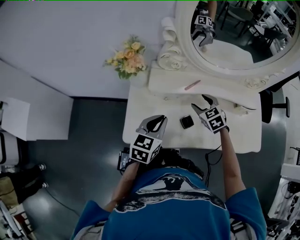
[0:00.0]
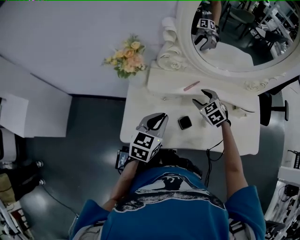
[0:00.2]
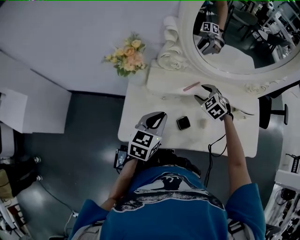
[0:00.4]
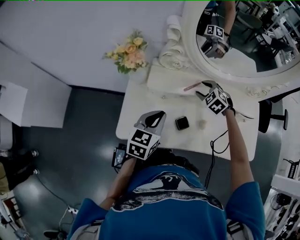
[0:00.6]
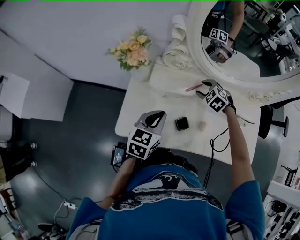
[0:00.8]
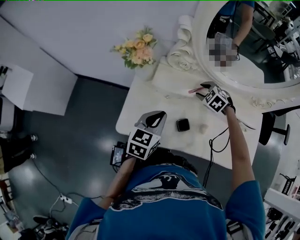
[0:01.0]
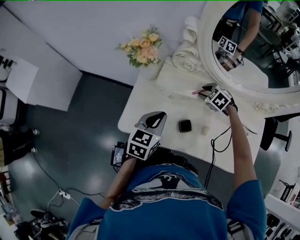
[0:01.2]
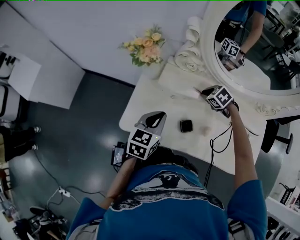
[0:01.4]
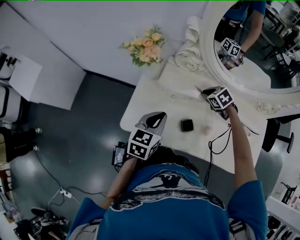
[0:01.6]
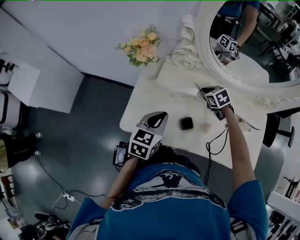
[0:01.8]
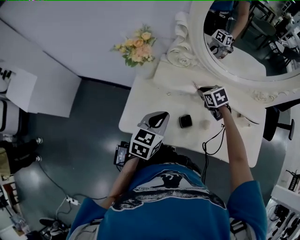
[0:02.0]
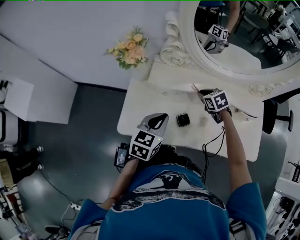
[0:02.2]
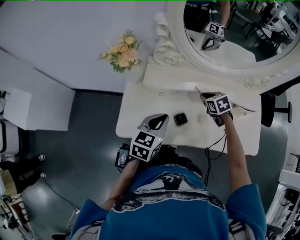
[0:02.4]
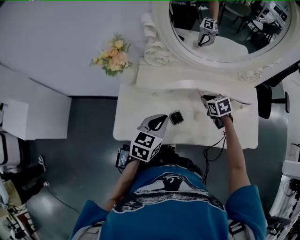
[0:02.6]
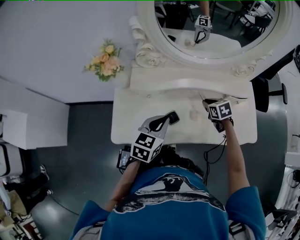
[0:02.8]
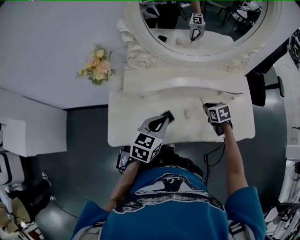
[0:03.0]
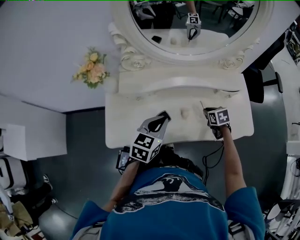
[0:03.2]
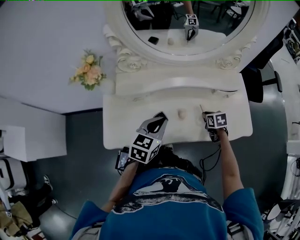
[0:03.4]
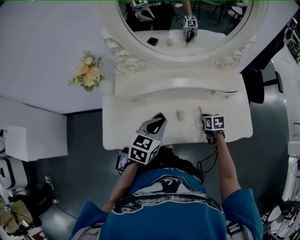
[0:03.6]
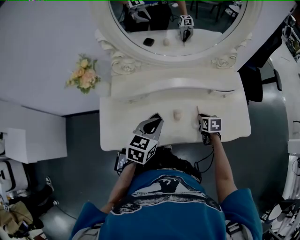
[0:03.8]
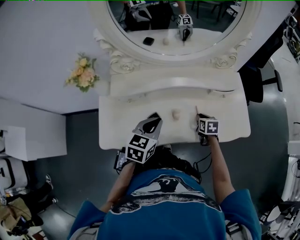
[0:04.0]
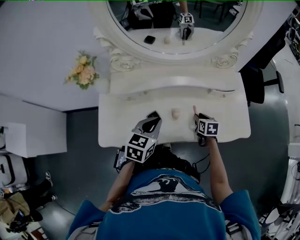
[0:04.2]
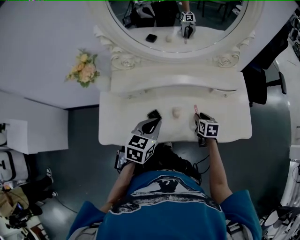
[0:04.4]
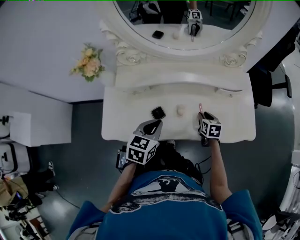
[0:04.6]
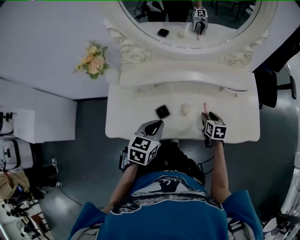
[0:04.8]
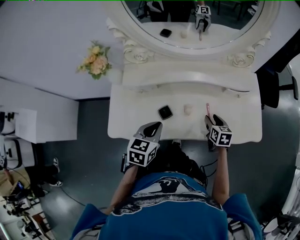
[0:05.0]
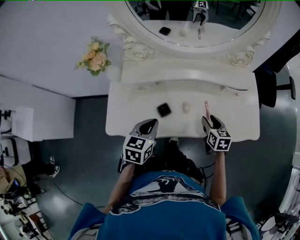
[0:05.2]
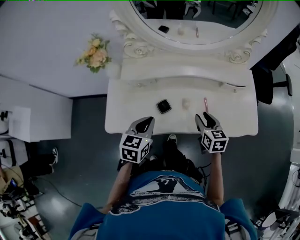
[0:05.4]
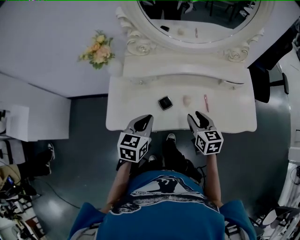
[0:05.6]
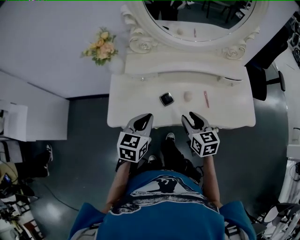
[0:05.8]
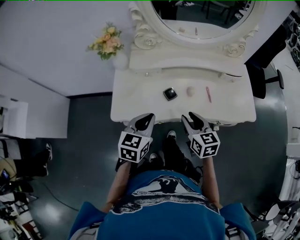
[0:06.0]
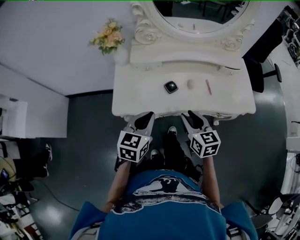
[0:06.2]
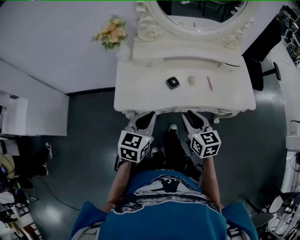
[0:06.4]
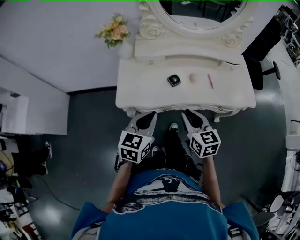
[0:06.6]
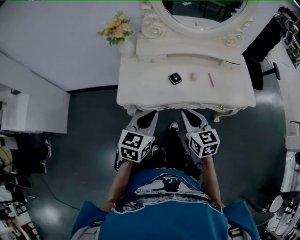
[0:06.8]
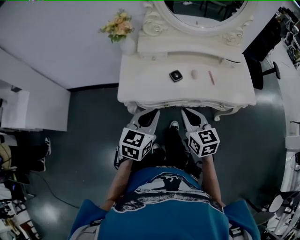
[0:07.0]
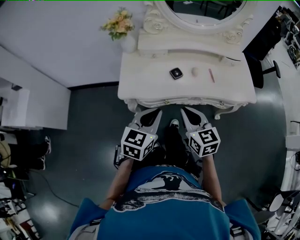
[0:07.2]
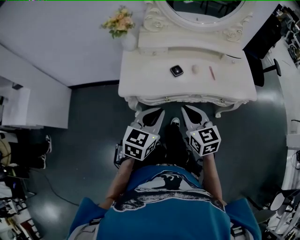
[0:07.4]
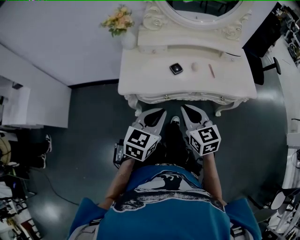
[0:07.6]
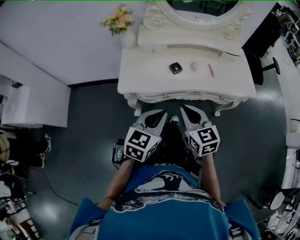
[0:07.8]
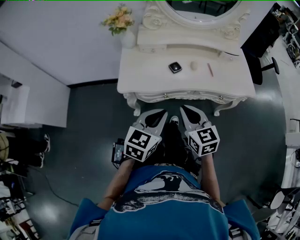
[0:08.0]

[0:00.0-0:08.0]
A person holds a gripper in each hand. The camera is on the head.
0:00.0 to 0:01.6: The right gripper changes place by approximately 10 cm, changes its angle by approximately 30 degrees, and closes.
0:01.6 to 0:03.2: The left gripper changes place by about 15 cm, and turns by some 30 degrees. The right gripper ends up about 30 cm from where it was, and twists approximately 50 degrees clockwise, seen from behind.
0:03.2 to 0:04.8: The left gripper ends up about 5 cm from where it was. Meanwhile the right gripper opens.
0:04.8 to 0:06.4: The left gripper travels backward and to the left by approximately 20 cm, while the right gripper is displaced backward, to the left and upward by roughly 35 cm, and turns by some 20 degrees.
0:06.4 to 0:08.0: Both grippers move backward, about 10 cm.

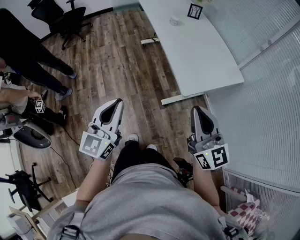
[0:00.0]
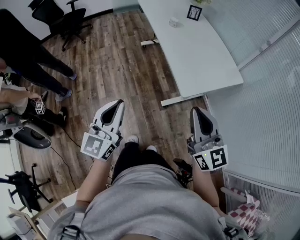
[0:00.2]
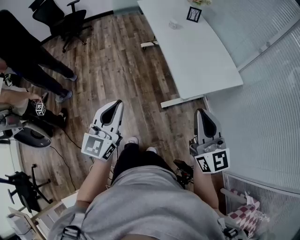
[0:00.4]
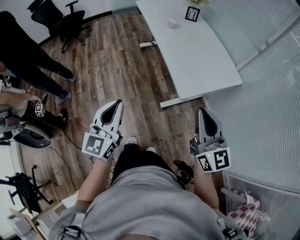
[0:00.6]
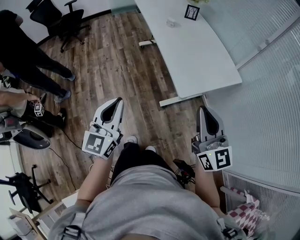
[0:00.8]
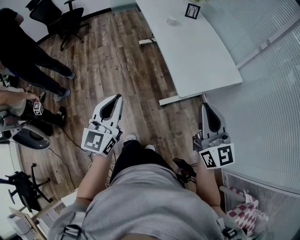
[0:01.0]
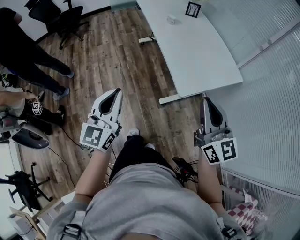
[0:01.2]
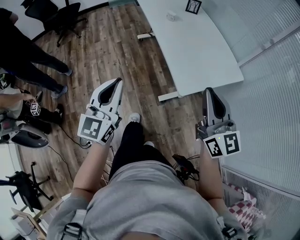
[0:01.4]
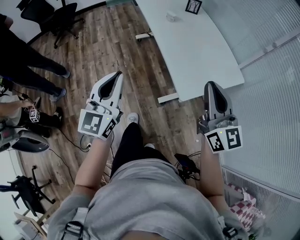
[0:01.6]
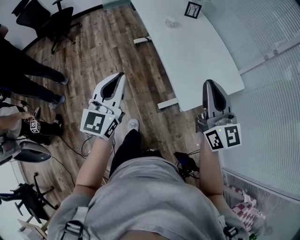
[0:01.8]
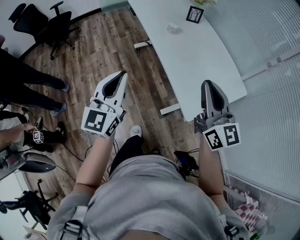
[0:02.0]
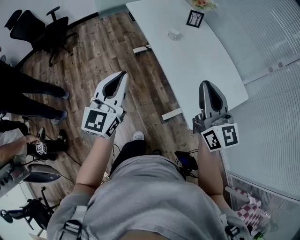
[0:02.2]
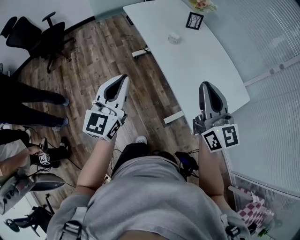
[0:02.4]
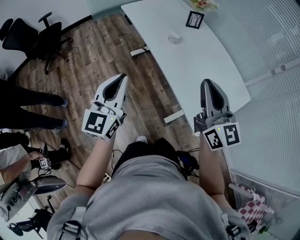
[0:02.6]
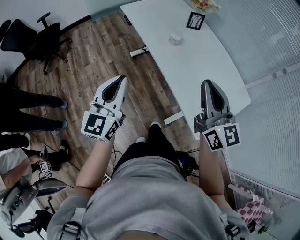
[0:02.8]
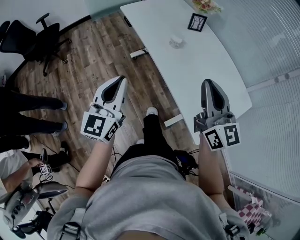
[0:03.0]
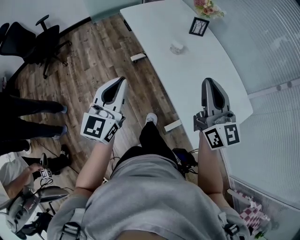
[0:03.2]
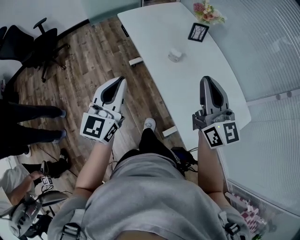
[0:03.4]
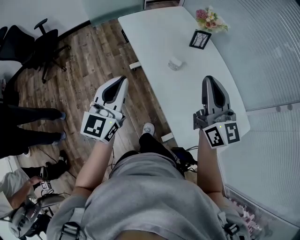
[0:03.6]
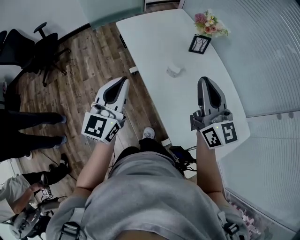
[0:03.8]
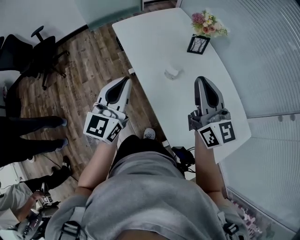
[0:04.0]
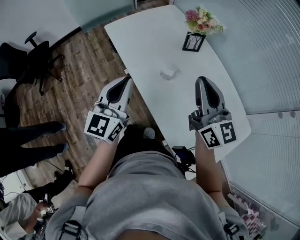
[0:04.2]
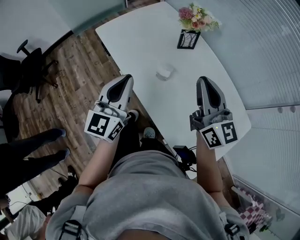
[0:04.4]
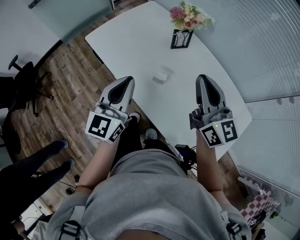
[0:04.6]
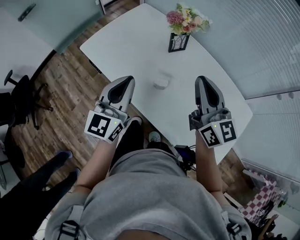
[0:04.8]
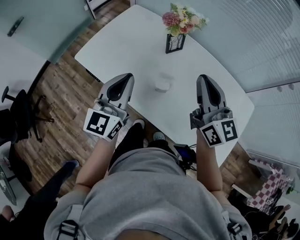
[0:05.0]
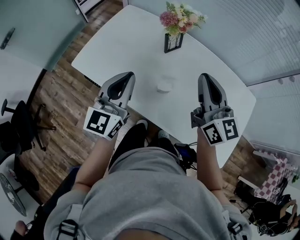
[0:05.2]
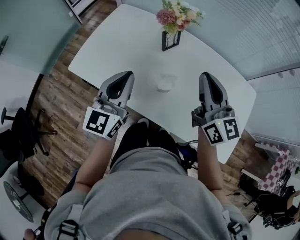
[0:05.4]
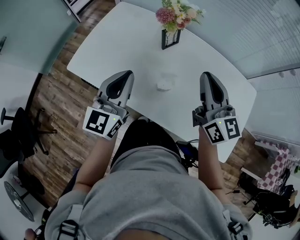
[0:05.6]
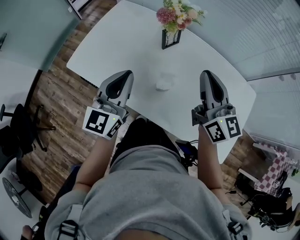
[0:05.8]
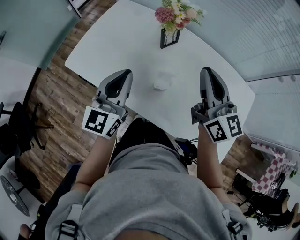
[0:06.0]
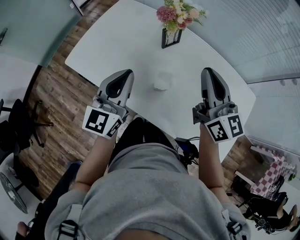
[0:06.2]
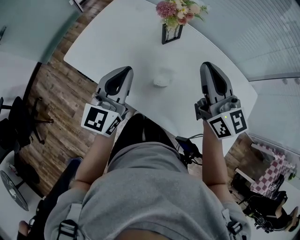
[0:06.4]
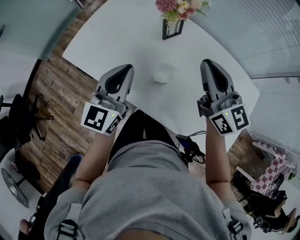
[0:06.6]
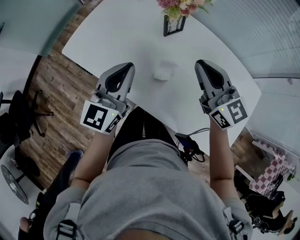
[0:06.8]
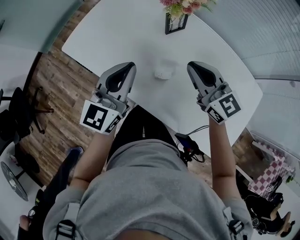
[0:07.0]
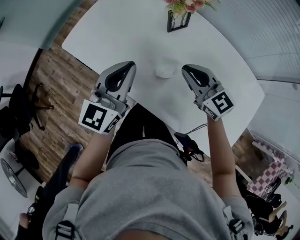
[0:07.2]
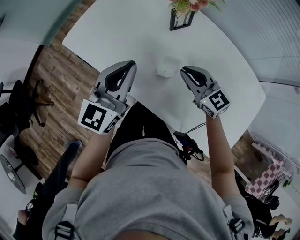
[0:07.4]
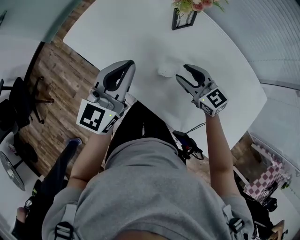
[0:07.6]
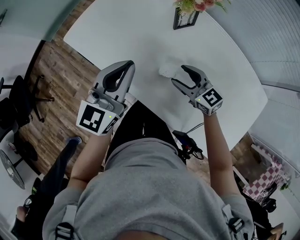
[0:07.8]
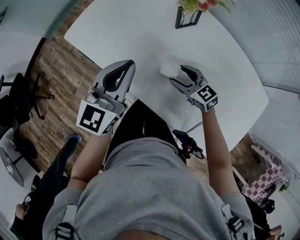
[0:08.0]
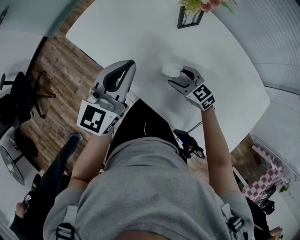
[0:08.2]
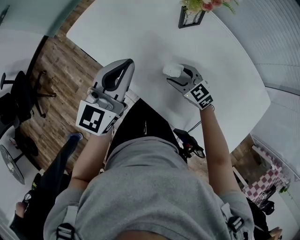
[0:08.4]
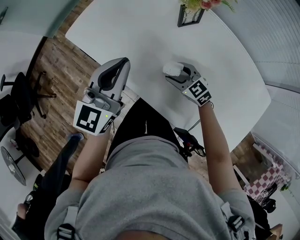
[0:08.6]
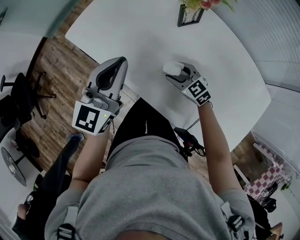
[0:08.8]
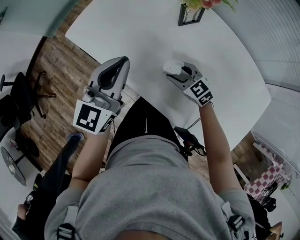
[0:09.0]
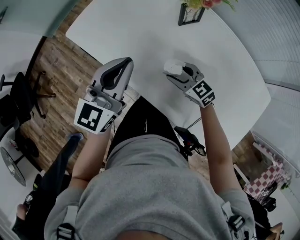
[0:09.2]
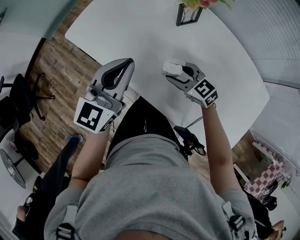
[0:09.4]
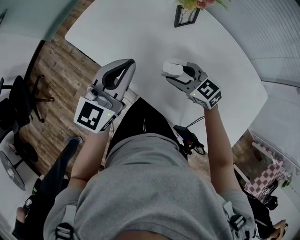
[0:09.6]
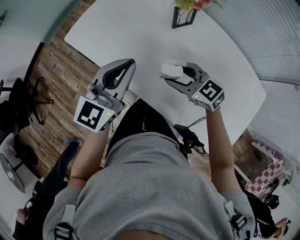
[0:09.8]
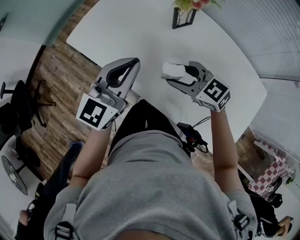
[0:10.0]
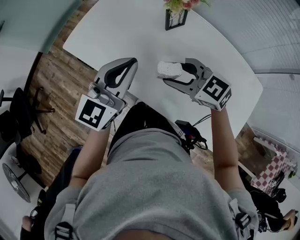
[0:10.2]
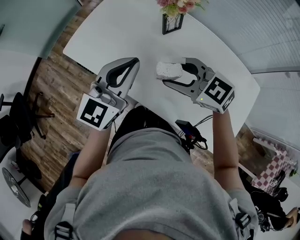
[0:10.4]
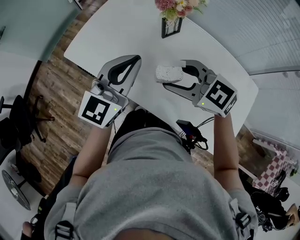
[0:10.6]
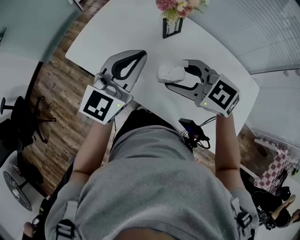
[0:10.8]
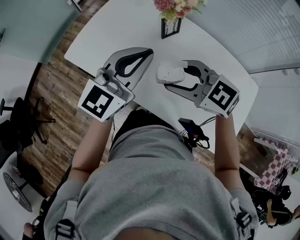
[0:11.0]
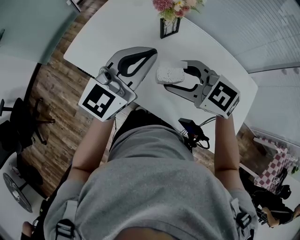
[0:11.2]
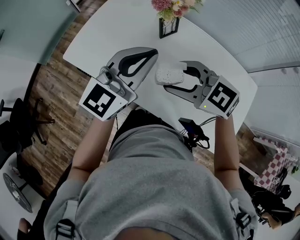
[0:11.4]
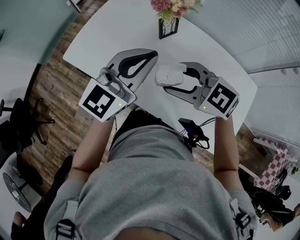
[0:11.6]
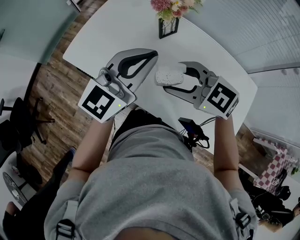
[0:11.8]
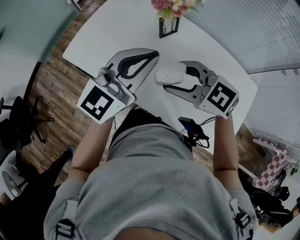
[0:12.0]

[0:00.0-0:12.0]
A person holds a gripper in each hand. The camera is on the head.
0:00.0 to 0:01.6: The two grippers go about 15 cm forward.
0:01.6 to 0:03.0: The left gripper is displaced forward by some 30 cm, while the right gripper shifts about 30 cm forward and to the left.
0:03.0 to 0:04.4: Both grippers travel together forward, roughly 25 cm.
0:04.4 to 0:06.0: The right gripper ends up approximately 10 cm from where it was, and turns by about 20 degrees, while the left gripper moves roughly 20 cm, and changes its angle by some 30 degrees.
0:06.0 to 0:07.6: The right gripper travels downward by approximately 25 cm, rotates some 40 degrees, and opens its fingers.
0:07.6 to 0:09.0: The right gripper is displaced downward by some 10 cm.
0:09.0 to 0:10.4: The left gripper is displaced upward by approximately 5 cm. The right gripper heads upward, covering roughly 20 cm.
0:10.4 to 0:12.0: The left gripper travels upward by about 5 cm.

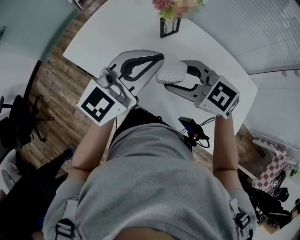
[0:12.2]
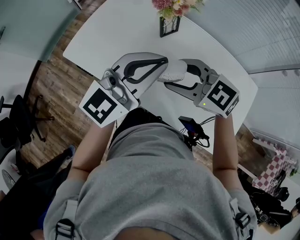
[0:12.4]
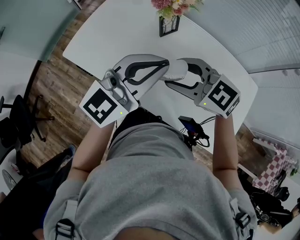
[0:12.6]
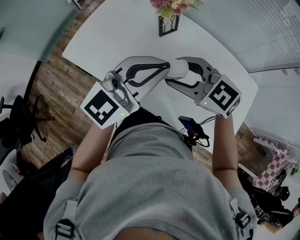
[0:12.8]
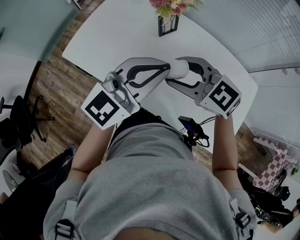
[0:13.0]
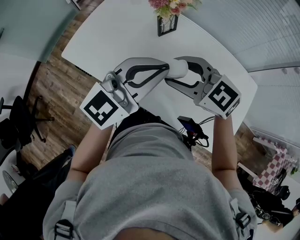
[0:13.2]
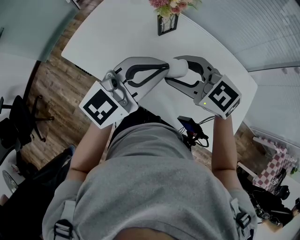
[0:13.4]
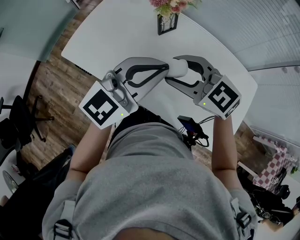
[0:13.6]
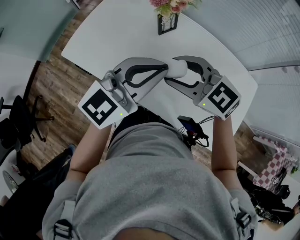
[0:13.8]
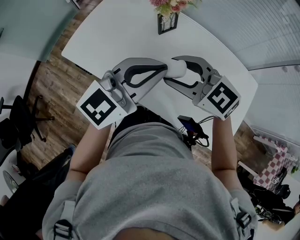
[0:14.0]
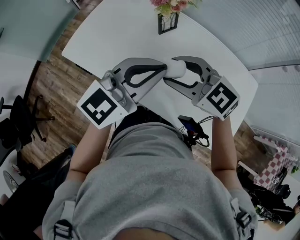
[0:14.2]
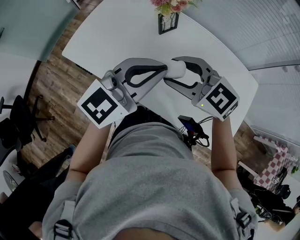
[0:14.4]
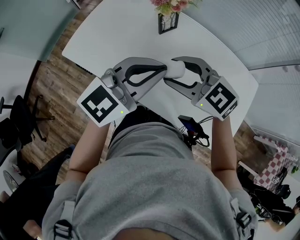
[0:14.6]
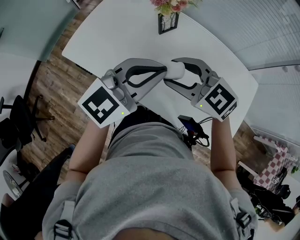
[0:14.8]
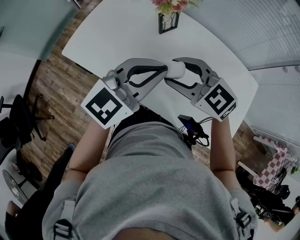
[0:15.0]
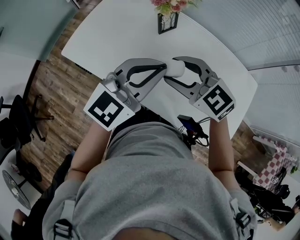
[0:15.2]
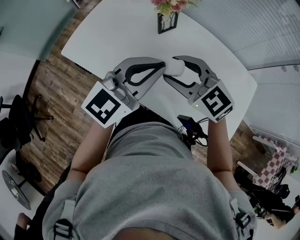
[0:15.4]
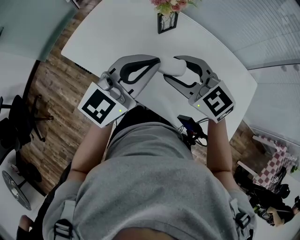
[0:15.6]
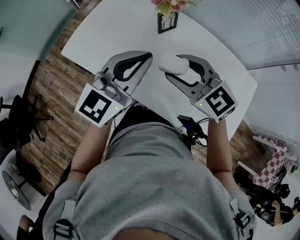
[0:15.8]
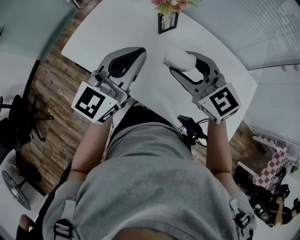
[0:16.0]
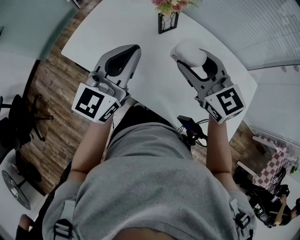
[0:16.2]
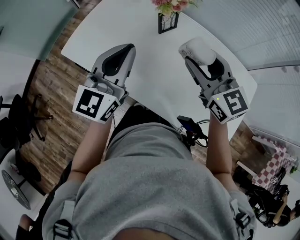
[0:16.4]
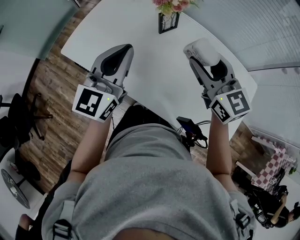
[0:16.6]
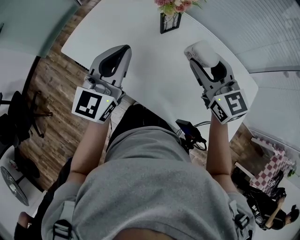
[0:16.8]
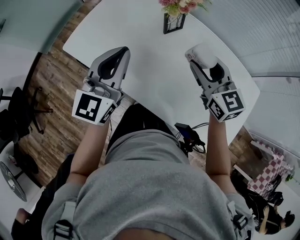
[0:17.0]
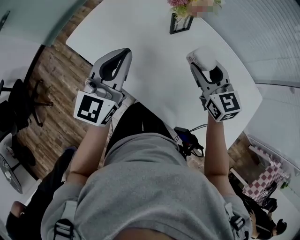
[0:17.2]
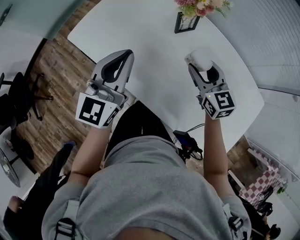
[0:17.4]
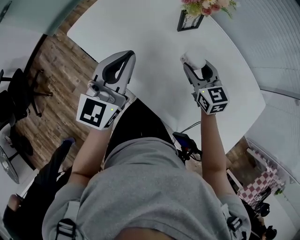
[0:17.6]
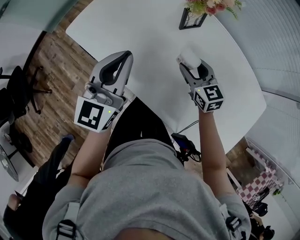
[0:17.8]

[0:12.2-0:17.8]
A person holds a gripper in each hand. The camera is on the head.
0:12.2 to 0:15.0: There are only small adjustments of the grippers.
0:15.0 to 0:16.4: The left gripper moves to the left and forward, about 10 cm, and turns by some 30 degrees. The right gripper moves to the right, roughly 5 cm, and turns by some 30 degrees.
0:16.4 to 0:17.8: The left gripper travels downward by approximately 5 cm; the right gripper moves downward, approximately 25 cm.
